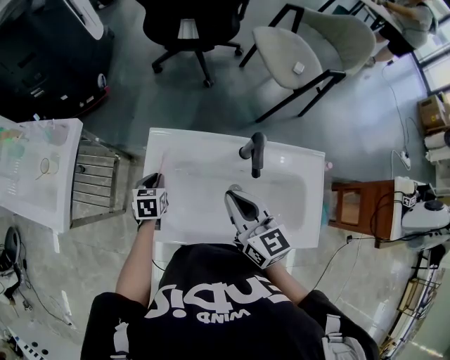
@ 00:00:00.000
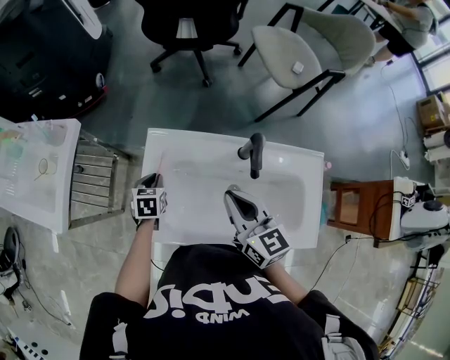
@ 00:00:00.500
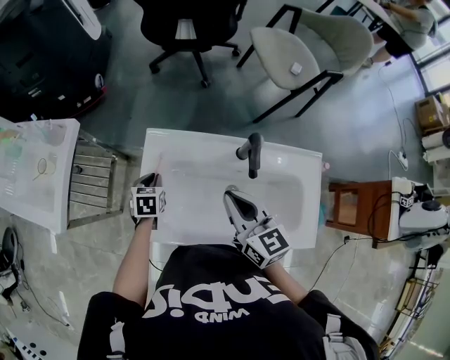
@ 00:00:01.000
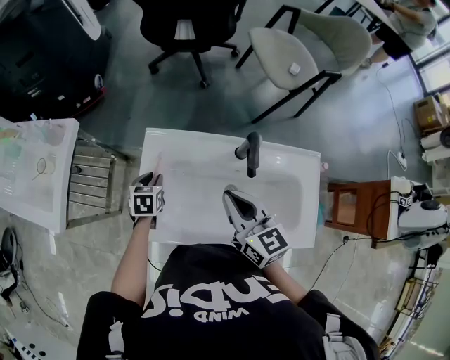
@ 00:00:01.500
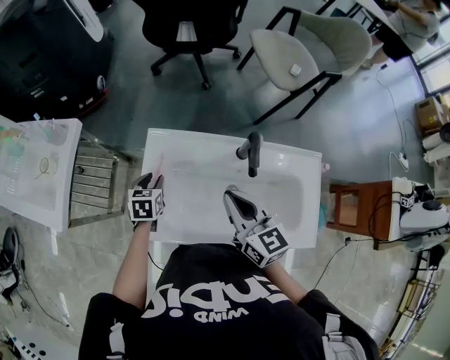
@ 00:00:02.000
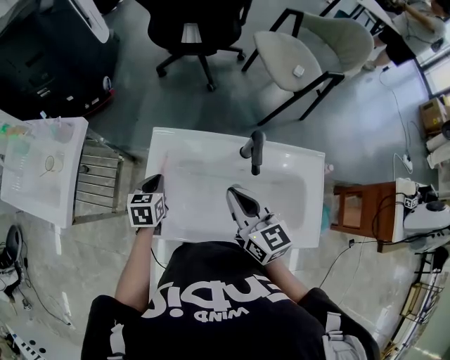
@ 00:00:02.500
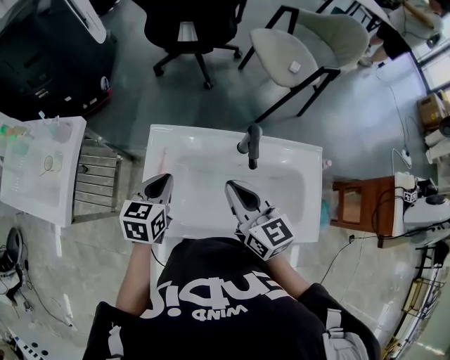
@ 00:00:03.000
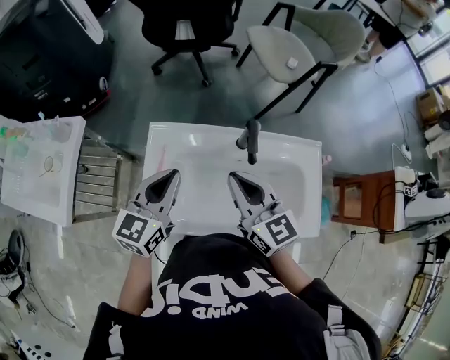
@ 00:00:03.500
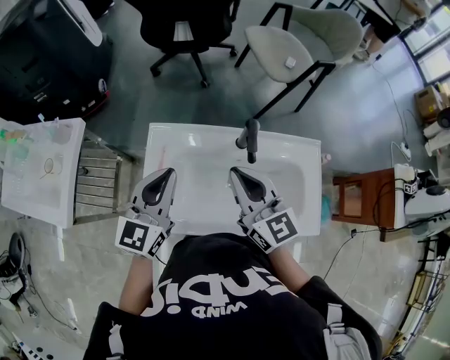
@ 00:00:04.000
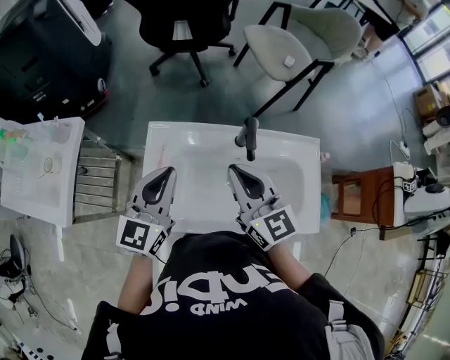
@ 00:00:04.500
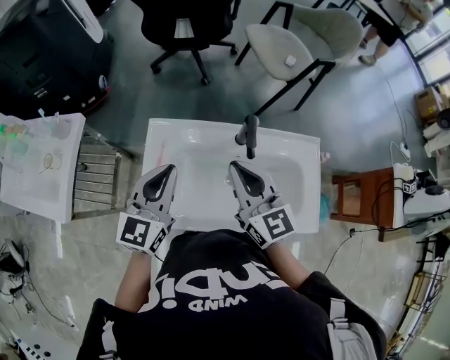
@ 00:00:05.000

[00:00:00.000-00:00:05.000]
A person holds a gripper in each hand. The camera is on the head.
00:00:00.000 to 00:00:02.500: The left gripper heads upward, covering approximately 5 cm, and opens, then closes once more.
00:00:02.500 to 00:00:05.000: The right gripper is displaced upward by roughly 5 cm; the left gripper goes some 20 cm upward, and angles its fingers upward, by approximately 40 degrees.

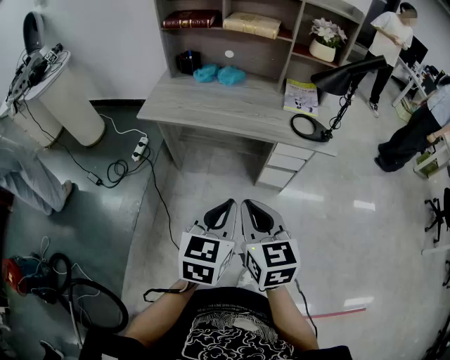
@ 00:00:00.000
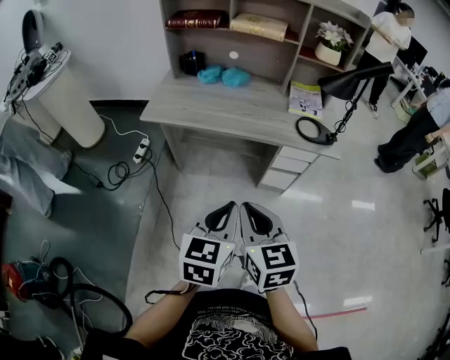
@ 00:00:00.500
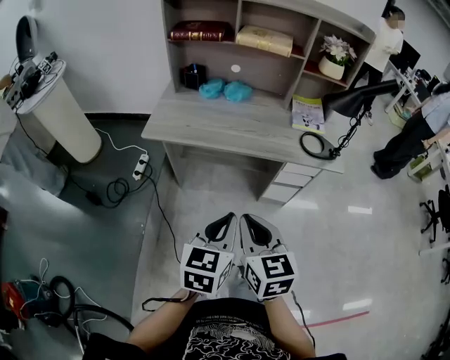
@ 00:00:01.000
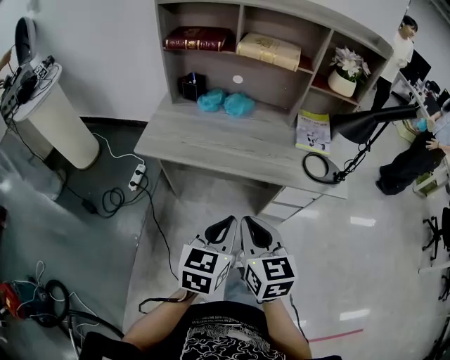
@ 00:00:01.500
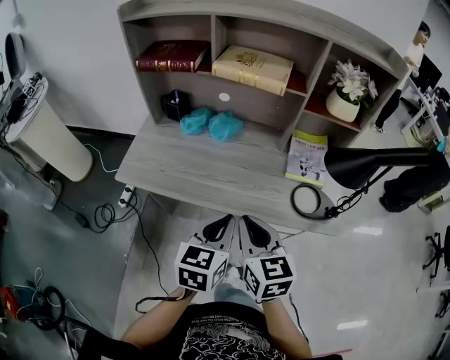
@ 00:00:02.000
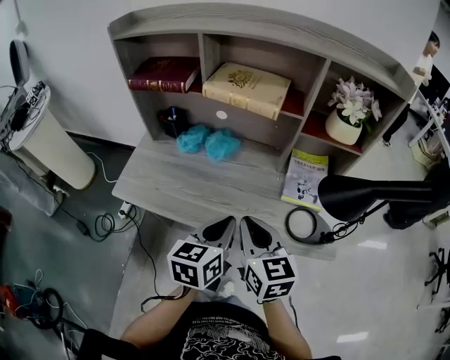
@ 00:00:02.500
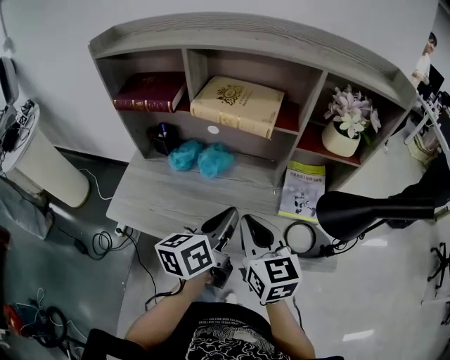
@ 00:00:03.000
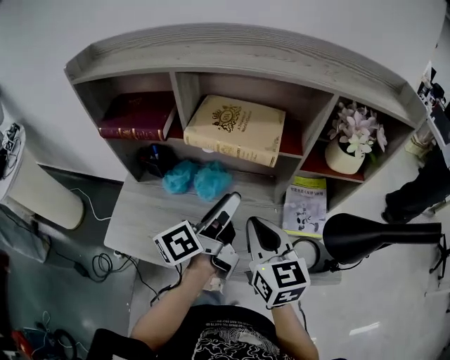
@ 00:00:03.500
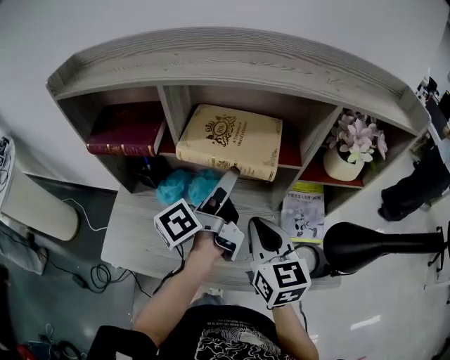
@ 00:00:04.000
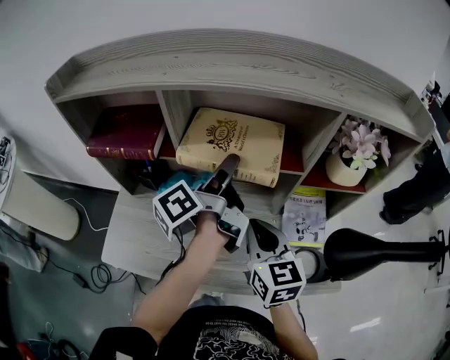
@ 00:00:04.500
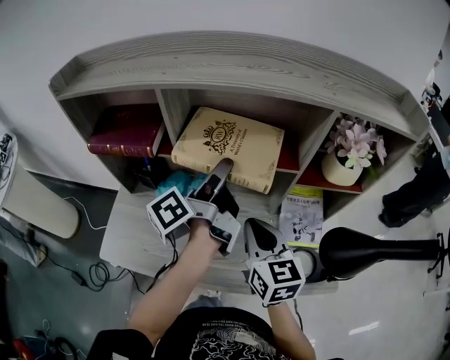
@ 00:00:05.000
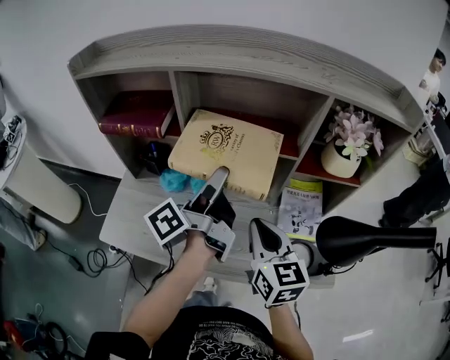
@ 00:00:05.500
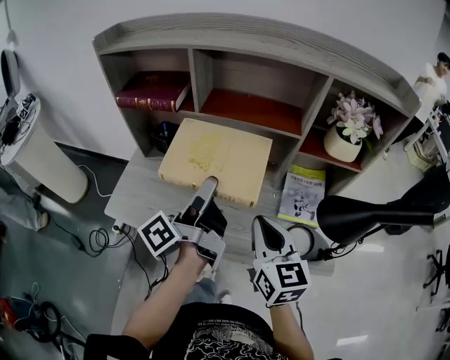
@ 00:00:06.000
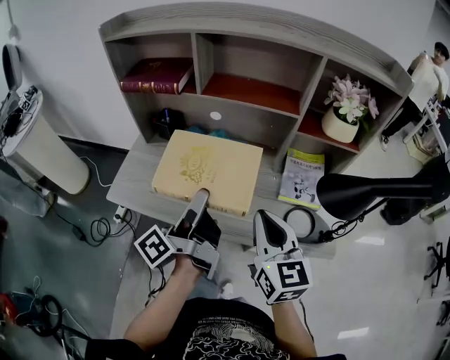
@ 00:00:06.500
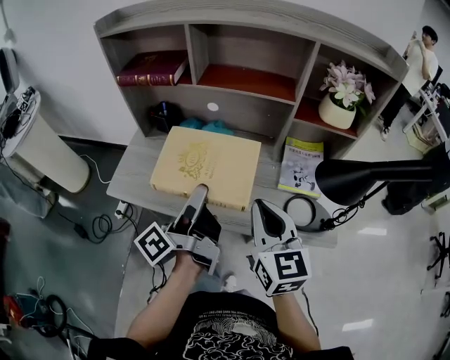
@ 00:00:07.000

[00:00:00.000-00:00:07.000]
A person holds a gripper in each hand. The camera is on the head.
00:00:00.000 to 00:00:02.000: Both grippers travel together forward, about 30 cm.
00:00:02.000 to 00:00:03.500: Both grippers travel together forward, about 25 cm. The left gripper rolls counterclockwise, seen from behind, by approximately 50 degrees, and opens its fingers.
00:00:03.500 to 00:00:05.000: The right gripper ends up roughly 5 cm from where it was, while the left gripper goes about 10 cm forward, and opens, then closes again.
00:00:05.000 to 00:00:07.000: The grippers both shift backward by some 20 cm.

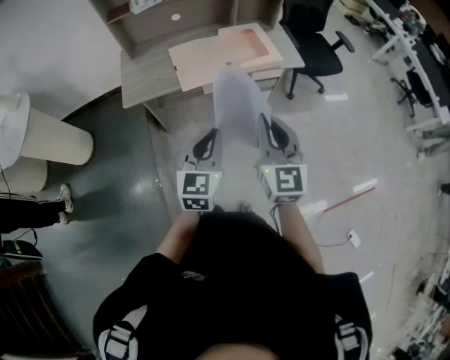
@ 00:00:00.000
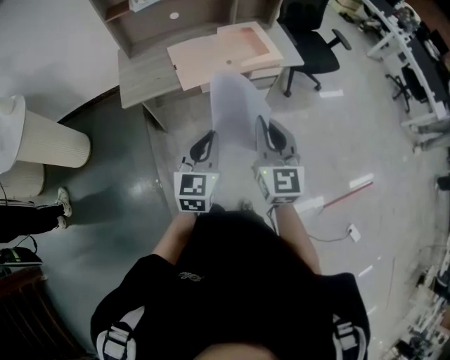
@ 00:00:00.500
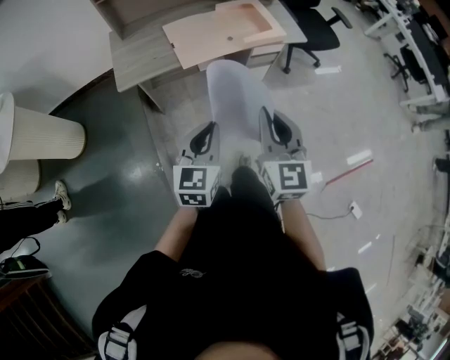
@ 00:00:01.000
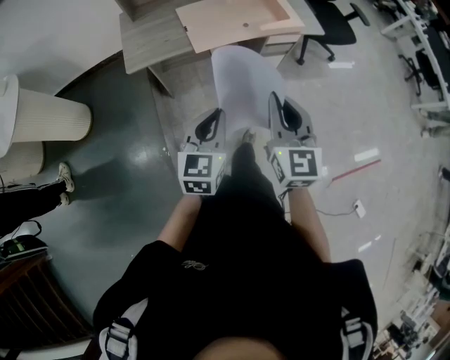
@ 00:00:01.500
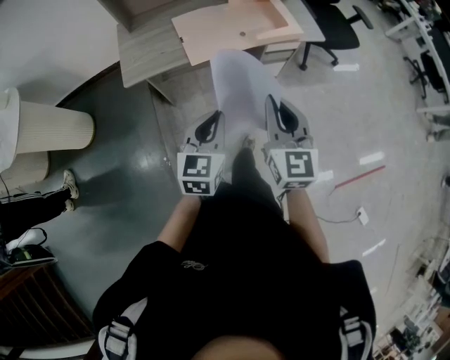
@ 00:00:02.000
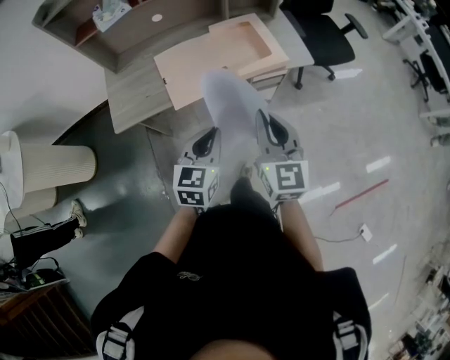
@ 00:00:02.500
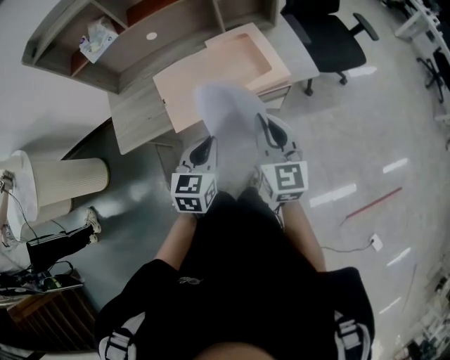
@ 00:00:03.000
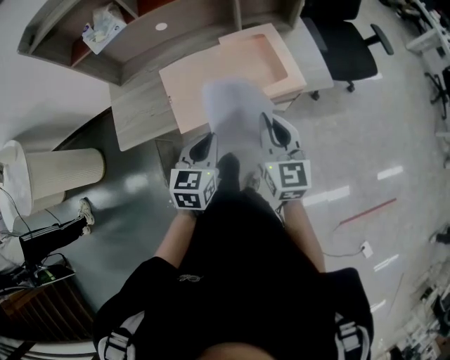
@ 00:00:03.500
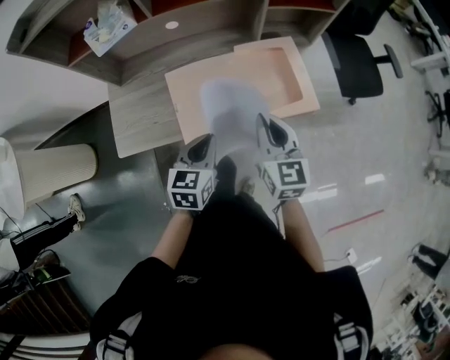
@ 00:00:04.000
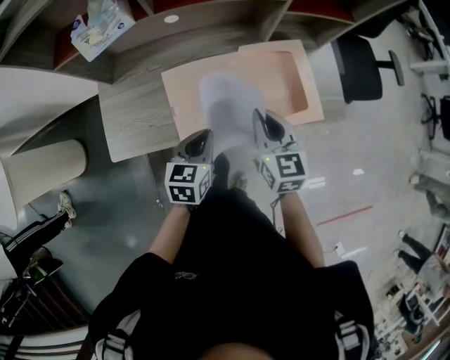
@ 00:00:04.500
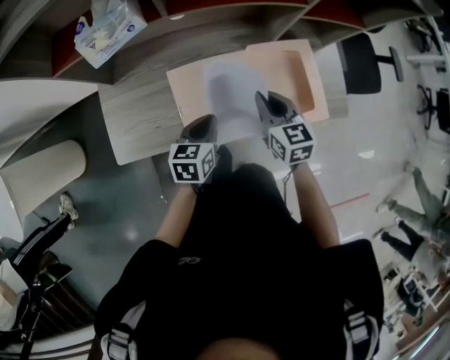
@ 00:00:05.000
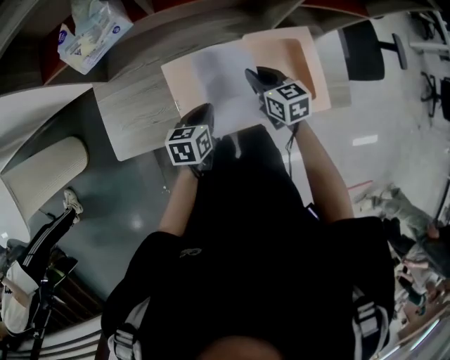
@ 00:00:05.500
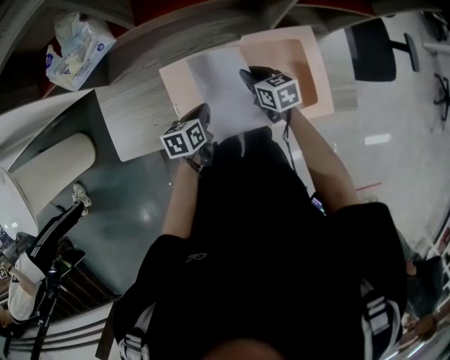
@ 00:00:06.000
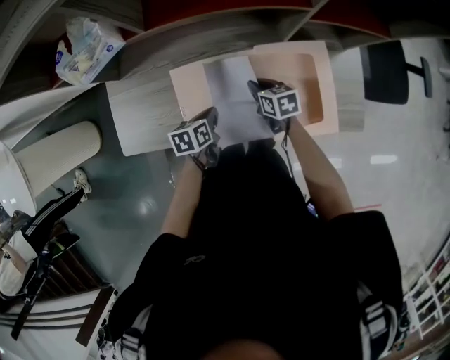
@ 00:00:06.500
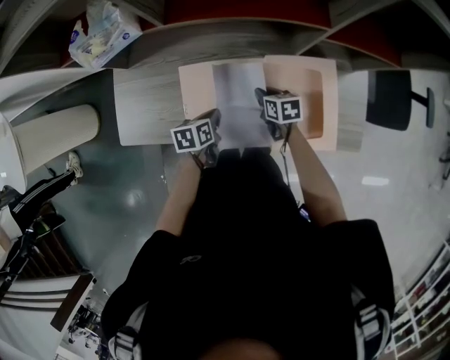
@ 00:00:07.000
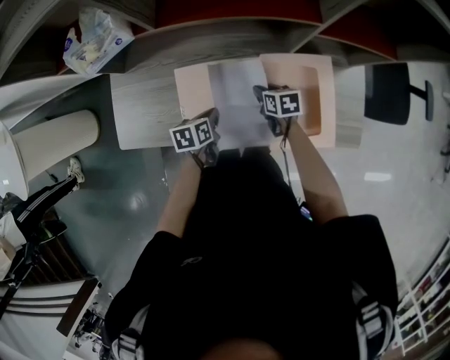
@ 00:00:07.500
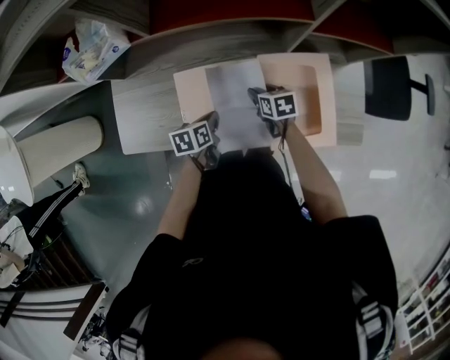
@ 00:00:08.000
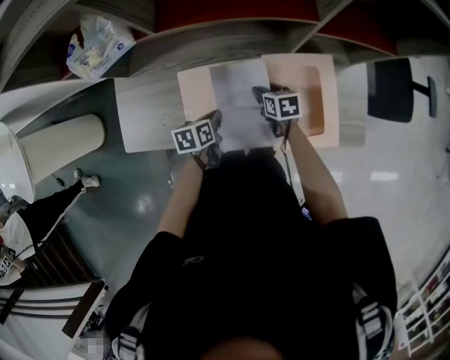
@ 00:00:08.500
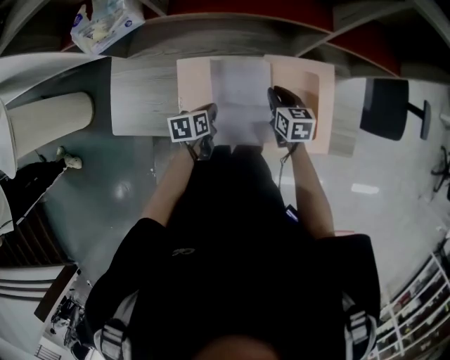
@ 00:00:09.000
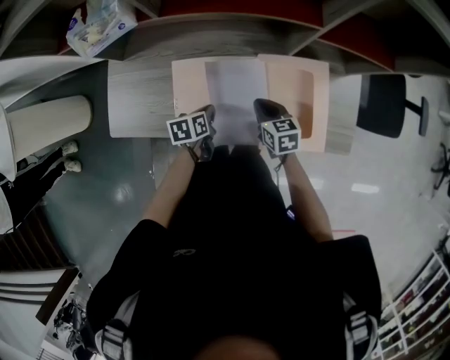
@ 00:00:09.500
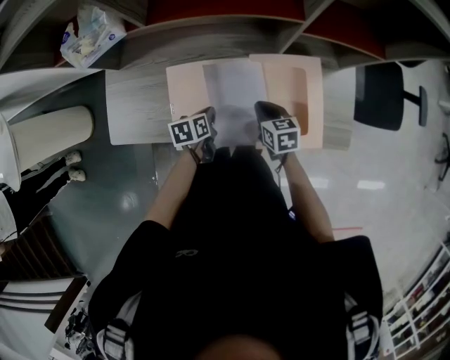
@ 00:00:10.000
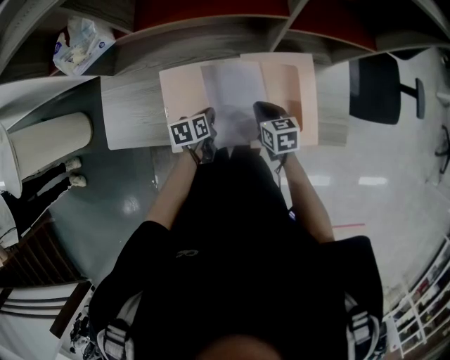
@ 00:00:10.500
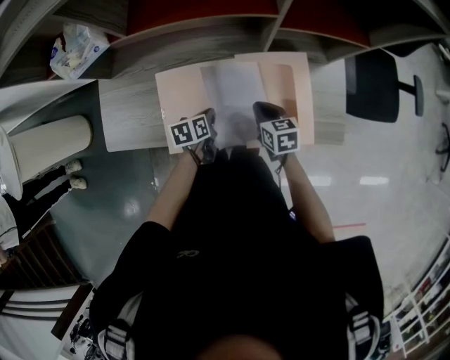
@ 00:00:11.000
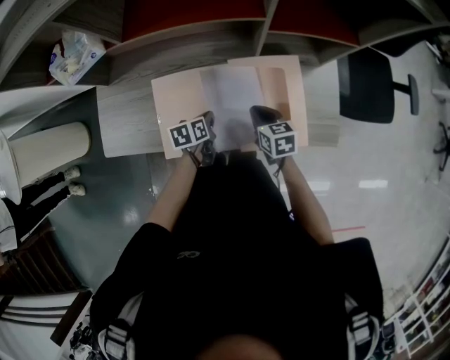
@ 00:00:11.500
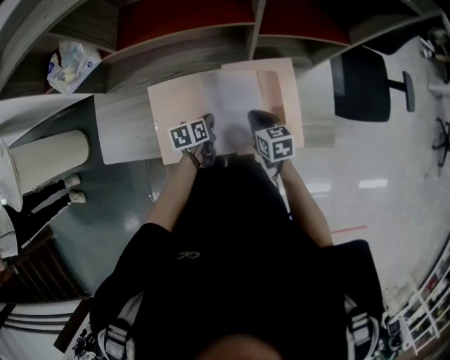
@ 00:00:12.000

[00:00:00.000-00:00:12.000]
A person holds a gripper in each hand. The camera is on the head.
00:00:00.000 to 00:00:02.000: The left gripper moves downward and to the left, about 10 cm; the right gripper shifts roughly 5 cm downward.
00:00:02.000 to 00:00:04.000: Both grippers move forward, some 35 cm.
00:00:04.000 to 00:00:06.000: Both grippers travel together downward and forward, some 25 cm. The right gripper swivels approximately 40 degrees; the left gripper swivels some 30 degrees.
00:00:06.000 to 00:00:08.000: The right gripper goes about 5 cm downward, and opens its fingers.
00:00:08.000 to 00:00:10.000: The right gripper goes approximately 10 cm backward and upward, and closes up.
00:00:10.000 to 00:00:12.000: The two grippers go some 5 cm to the right.

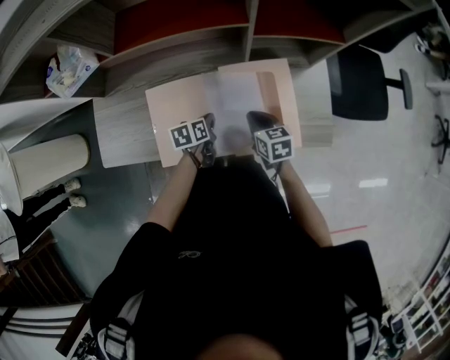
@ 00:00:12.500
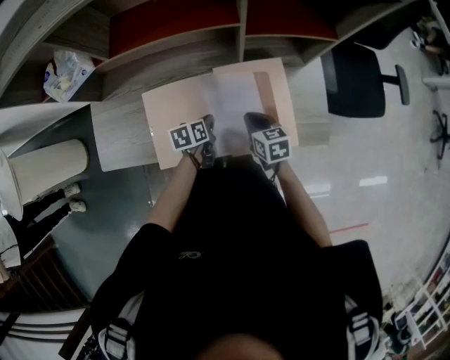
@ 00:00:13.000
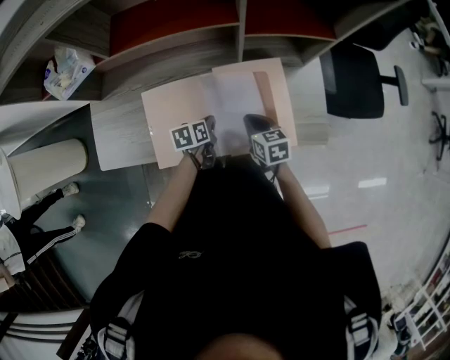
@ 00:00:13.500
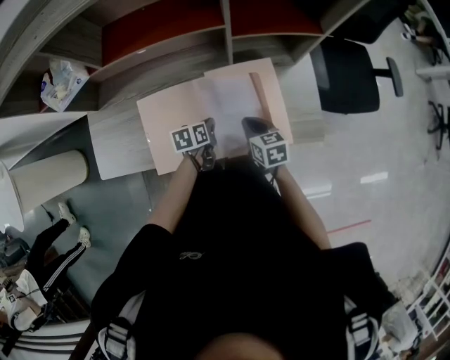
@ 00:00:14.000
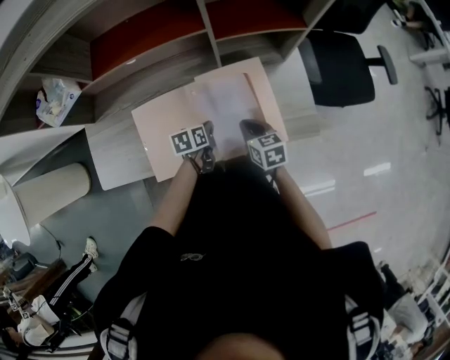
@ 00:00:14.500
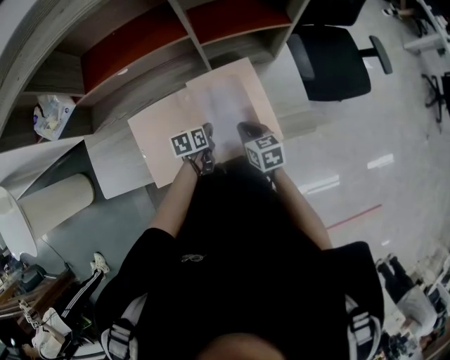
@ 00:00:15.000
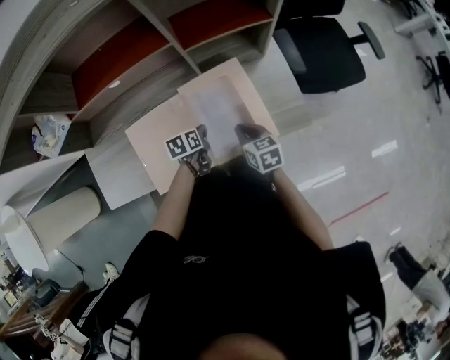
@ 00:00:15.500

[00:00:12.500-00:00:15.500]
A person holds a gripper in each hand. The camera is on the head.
00:00:12.500 to 00:00:14.000: There are only small adjustments of the grippers.
00:00:14.000 to 00:00:15.500: The grippers stay close to where they were, moving slightly.
